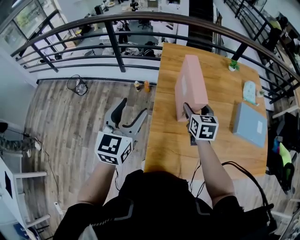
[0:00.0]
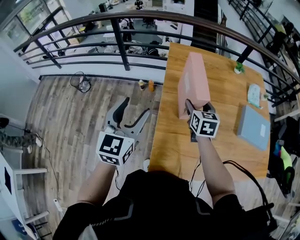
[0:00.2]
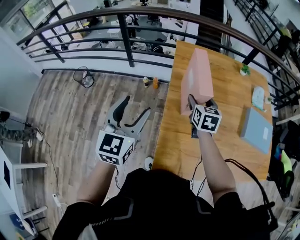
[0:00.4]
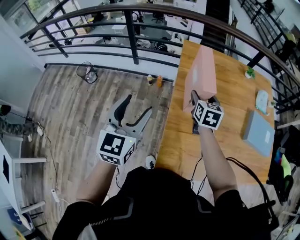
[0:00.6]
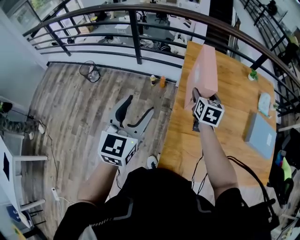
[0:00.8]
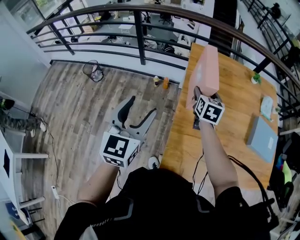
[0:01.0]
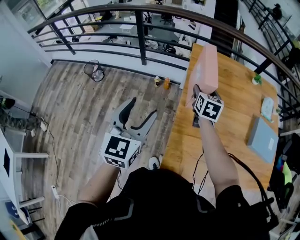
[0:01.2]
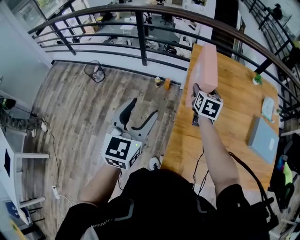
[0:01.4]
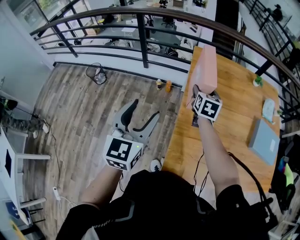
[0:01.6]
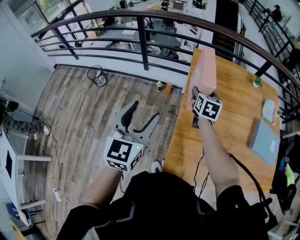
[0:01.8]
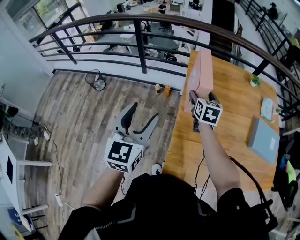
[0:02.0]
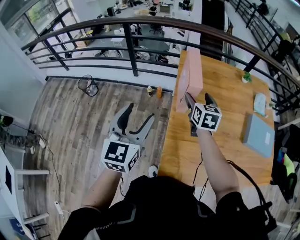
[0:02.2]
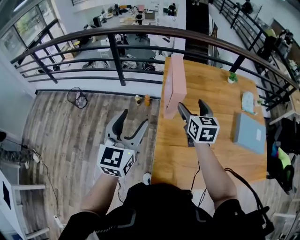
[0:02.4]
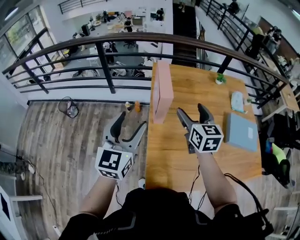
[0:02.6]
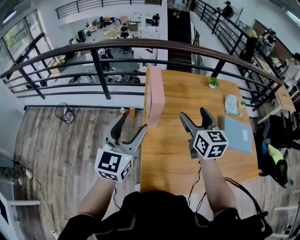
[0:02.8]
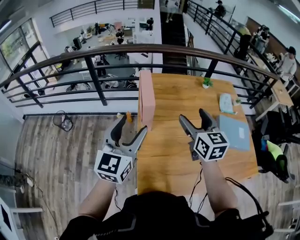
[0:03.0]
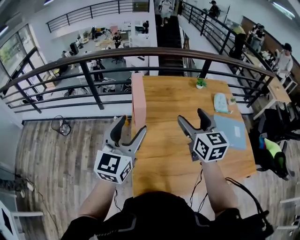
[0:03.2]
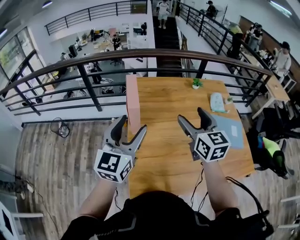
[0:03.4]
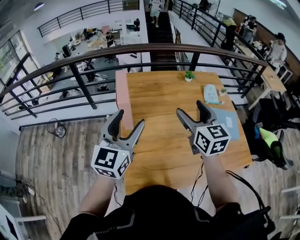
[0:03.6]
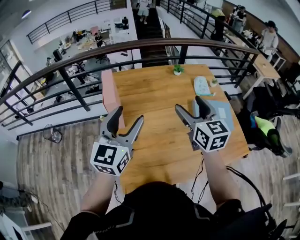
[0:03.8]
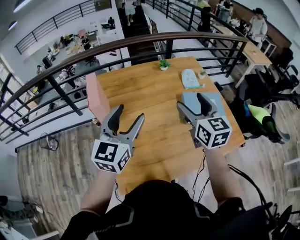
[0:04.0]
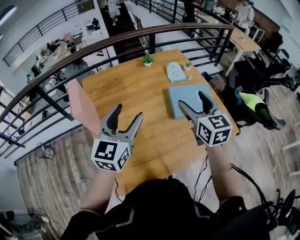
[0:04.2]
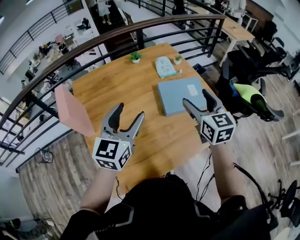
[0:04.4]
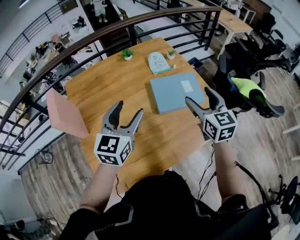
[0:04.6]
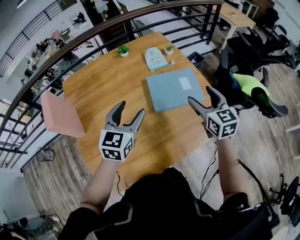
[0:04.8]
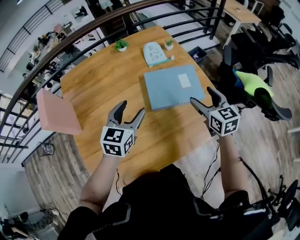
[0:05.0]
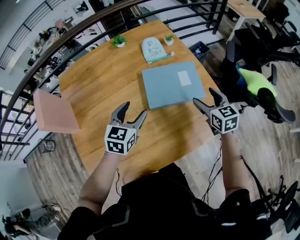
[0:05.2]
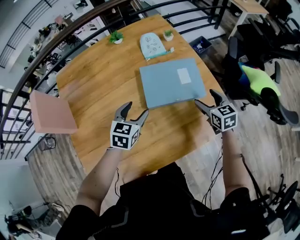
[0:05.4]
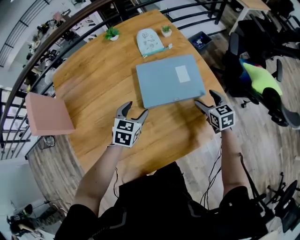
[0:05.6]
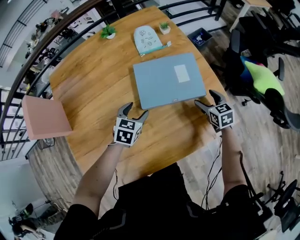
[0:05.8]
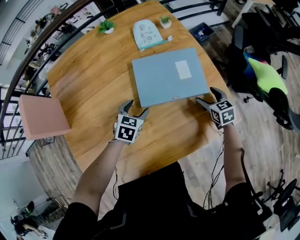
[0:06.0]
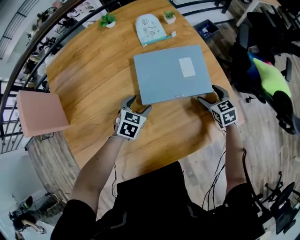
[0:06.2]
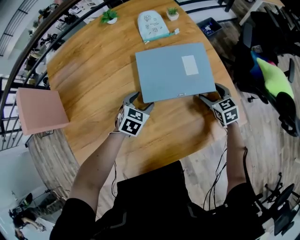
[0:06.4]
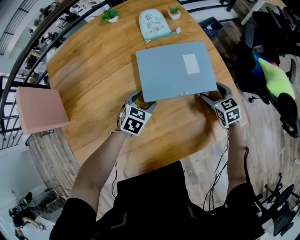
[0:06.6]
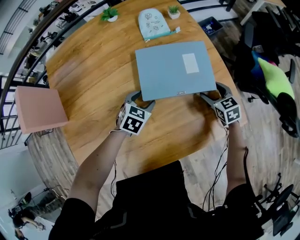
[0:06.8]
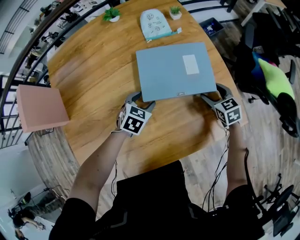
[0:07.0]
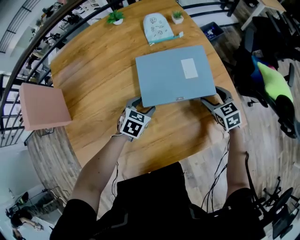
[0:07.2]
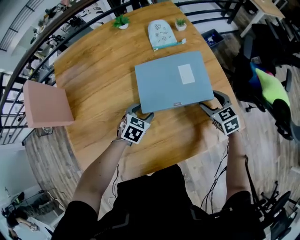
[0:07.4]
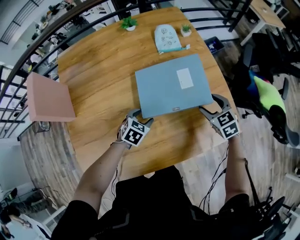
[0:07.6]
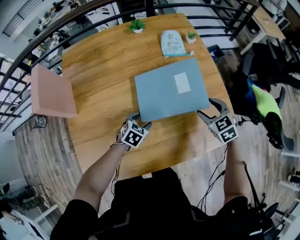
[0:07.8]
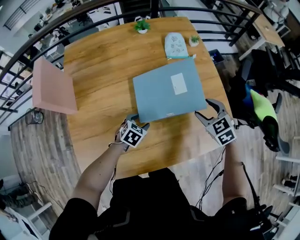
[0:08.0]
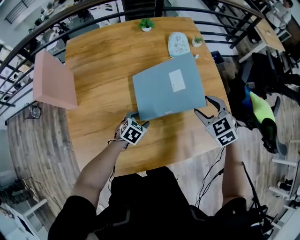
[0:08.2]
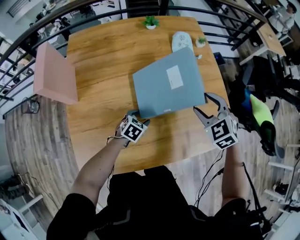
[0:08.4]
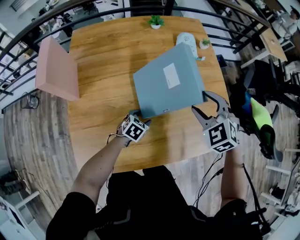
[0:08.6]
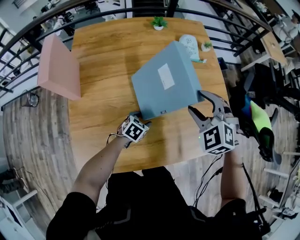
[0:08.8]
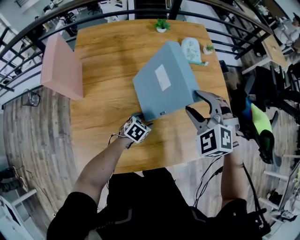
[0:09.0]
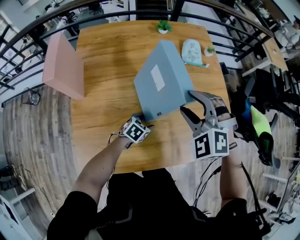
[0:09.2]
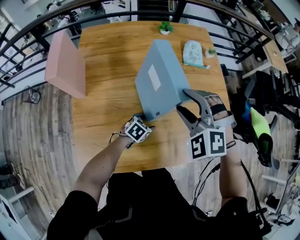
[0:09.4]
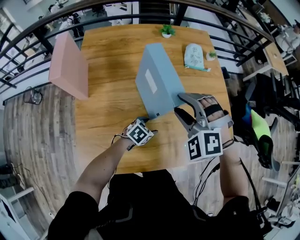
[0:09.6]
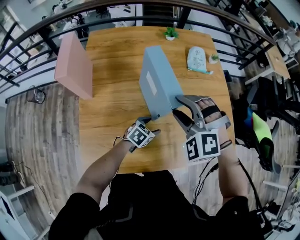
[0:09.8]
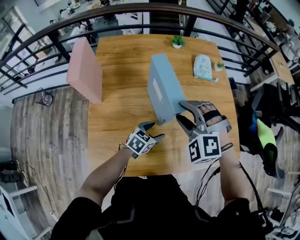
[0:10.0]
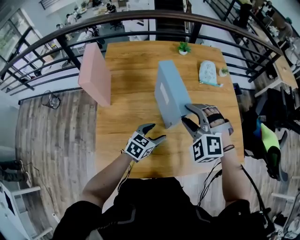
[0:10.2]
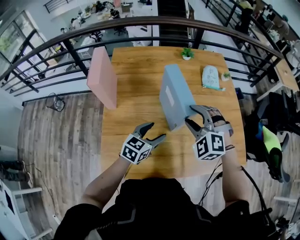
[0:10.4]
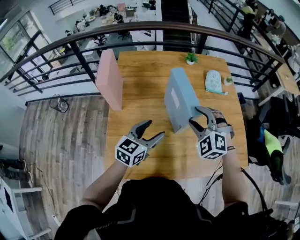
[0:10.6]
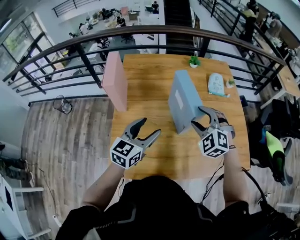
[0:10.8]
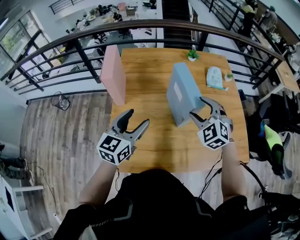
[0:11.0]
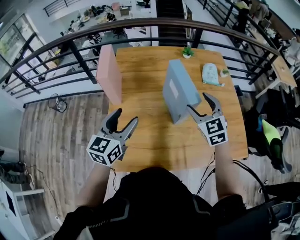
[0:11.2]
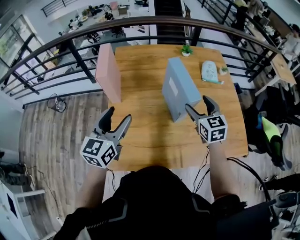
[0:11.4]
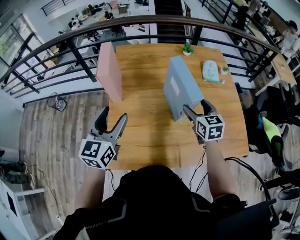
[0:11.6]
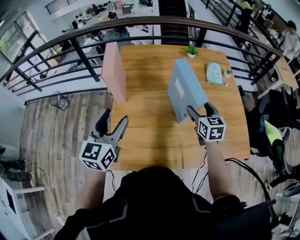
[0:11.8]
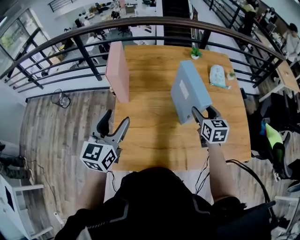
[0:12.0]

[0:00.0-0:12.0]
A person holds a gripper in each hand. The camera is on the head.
0:00.0 to 0:01.6: The right gripper is displaced to the left and forward by about 15 cm. The left gripper moves to the left, about 10 cm.
0:01.6 to 0:03.0: The right gripper goes approximately 25 cm upward, to the right and backward; the left gripper shifts some 15 cm to the right and upward.
0:03.0 to 0:04.4: Both grippers travel together to the right, about 35 cm. The left gripper swivels about 20 degrees. The right gripper changes its angle by approximately 20 degrees.
0:04.4 to 0:06.0: Both grippers move downward and to the right, approximately 40 cm. The right gripper swivels about 30 degrees. Meanwhile the left gripper angles its fingers downward, by about 40 degrees.
0:06.0 to 0:07.6: The right gripper travels upward and to the left by about 10 cm, and rotates about 20 degrees. Meanwhile the left gripper is displaced backward by about 5 cm.
0:07.6 to 0:09.0: The left gripper travels to the left by roughly 5 cm, while the right gripper is displaced to the left and upward by about 25 cm, and rolls counterclockwise, seen from behind, by approximately 50 degrees.
0:09.0 to 0:10.4: The right gripper goes some 10 cm to the left. Meanwhile the left gripper heads upward and to the left, covering roughly 20 cm, and swivels some 30 degrees.
0:10.4 to 0:12.0: The left gripper is displaced to the left and upward by about 25 cm, and swivels about 30 degrees. The right gripper rolls clockwise, seen from behind, by roughly 70 degrees.

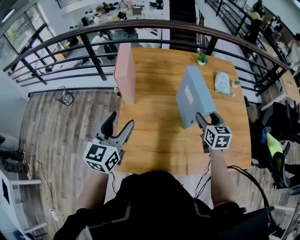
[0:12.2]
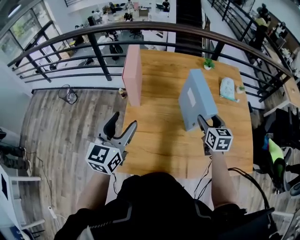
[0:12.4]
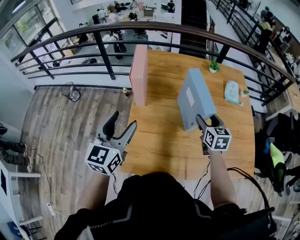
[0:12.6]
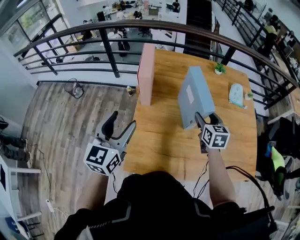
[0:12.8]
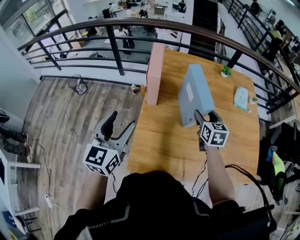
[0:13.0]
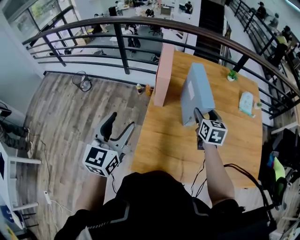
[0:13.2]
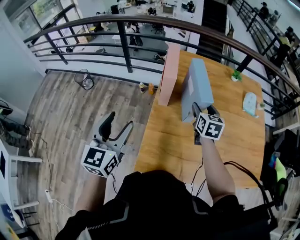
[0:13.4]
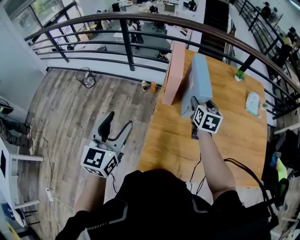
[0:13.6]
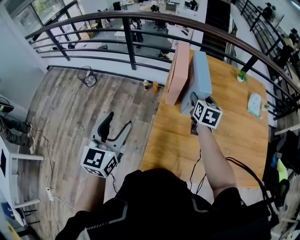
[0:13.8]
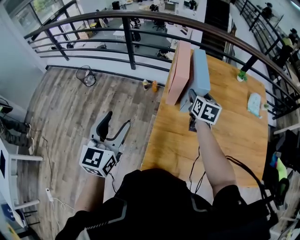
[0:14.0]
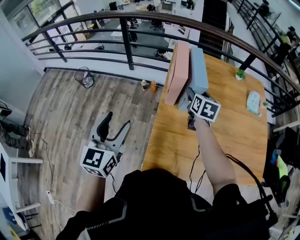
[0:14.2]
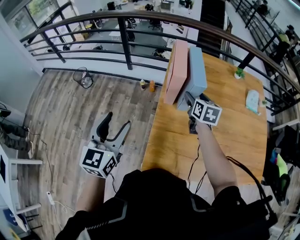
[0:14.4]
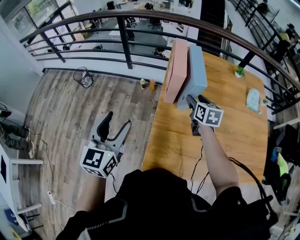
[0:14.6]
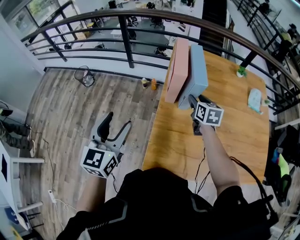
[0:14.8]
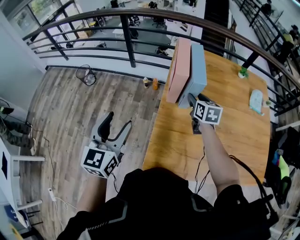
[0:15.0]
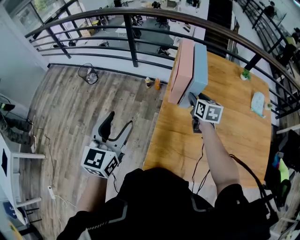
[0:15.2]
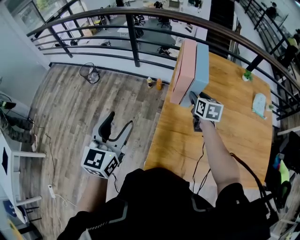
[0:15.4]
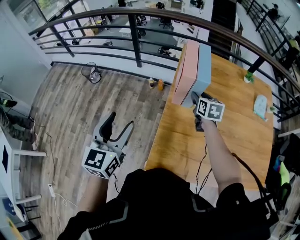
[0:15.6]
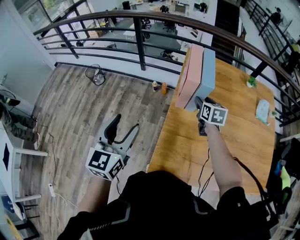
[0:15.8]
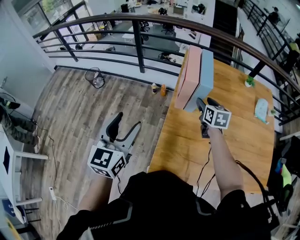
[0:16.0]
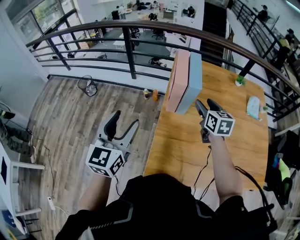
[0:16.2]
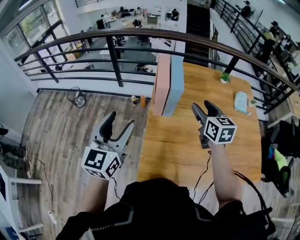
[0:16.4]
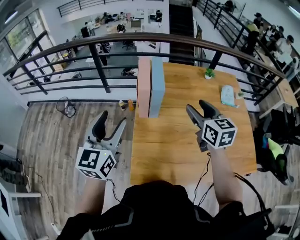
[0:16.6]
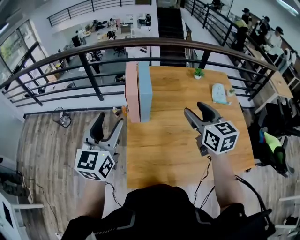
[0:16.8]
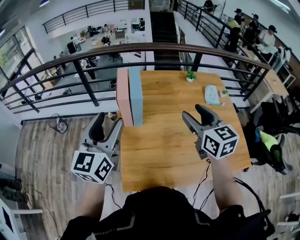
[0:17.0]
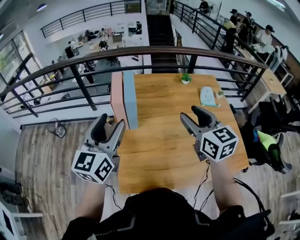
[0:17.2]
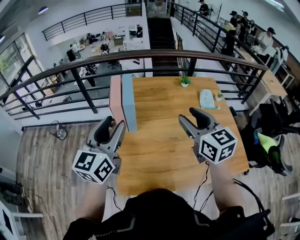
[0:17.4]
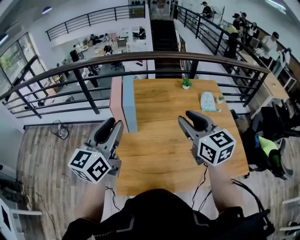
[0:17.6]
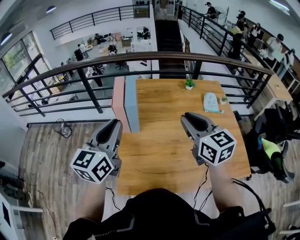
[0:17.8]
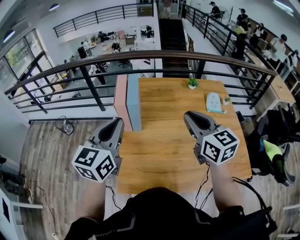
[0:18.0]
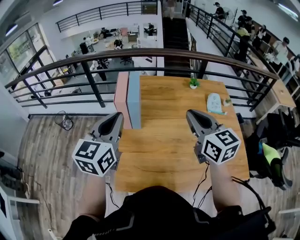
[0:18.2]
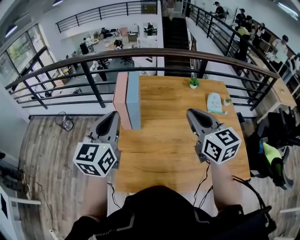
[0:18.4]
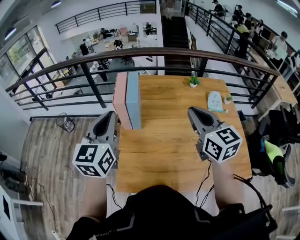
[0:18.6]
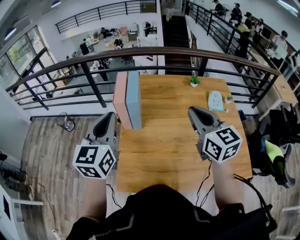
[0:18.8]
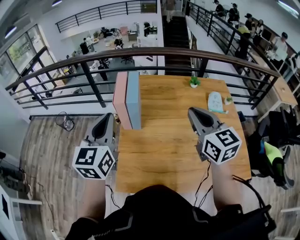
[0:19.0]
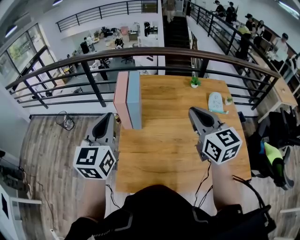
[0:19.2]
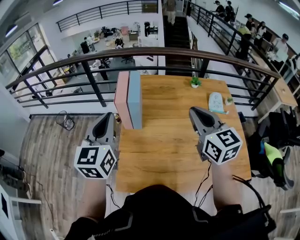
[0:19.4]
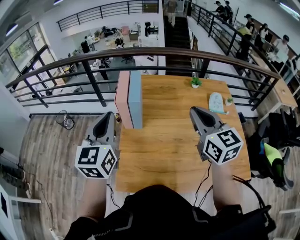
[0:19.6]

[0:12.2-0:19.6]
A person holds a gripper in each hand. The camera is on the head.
0:12.2 to 0:13.6: The right gripper moves to the left and forward, approximately 25 cm. Meanwhile the left gripper heads to the left, covering some 20 cm.
0:13.6 to 0:15.2: The right gripper moves to the left, about 5 cm.
0:15.2 to 0:16.6: The left gripper travels to the right and upward by approximately 10 cm. The right gripper travels upward, backward and to the right by approximately 25 cm.
0:16.6 to 0:18.2: The right gripper is displaced to the right, upward and backward by roughly 15 cm, and closes. The left gripper travels to the right and upward by approximately 15 cm, and closes up.
0:18.2 to 0:19.6: The grippers stay close to where they were, moving slightly.

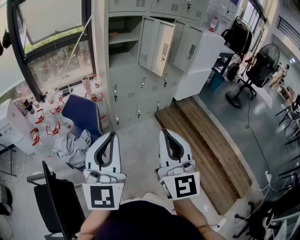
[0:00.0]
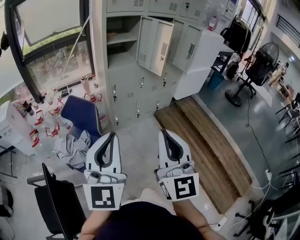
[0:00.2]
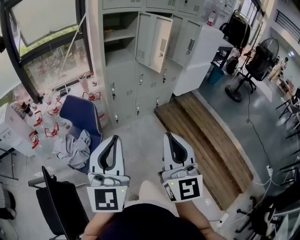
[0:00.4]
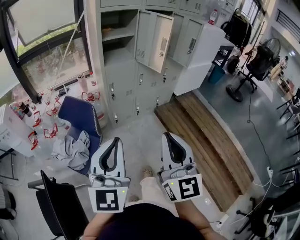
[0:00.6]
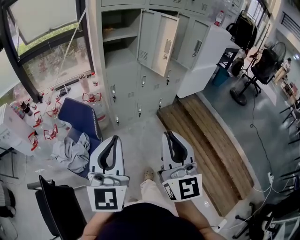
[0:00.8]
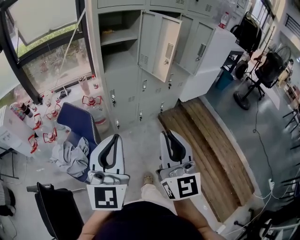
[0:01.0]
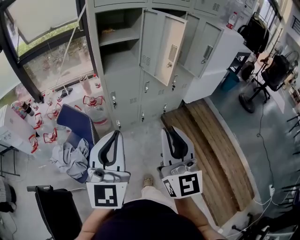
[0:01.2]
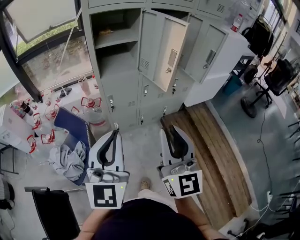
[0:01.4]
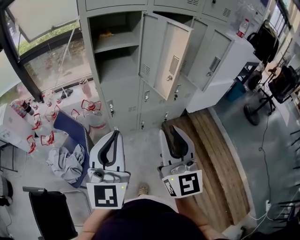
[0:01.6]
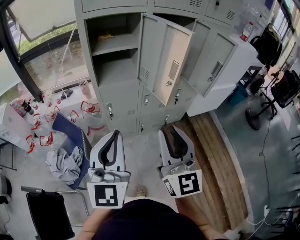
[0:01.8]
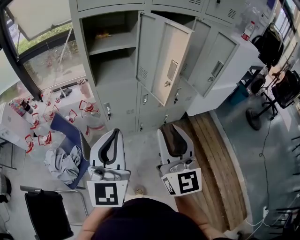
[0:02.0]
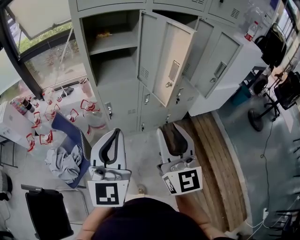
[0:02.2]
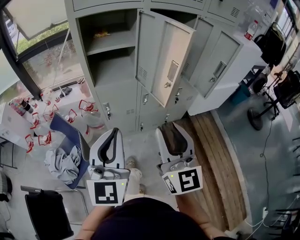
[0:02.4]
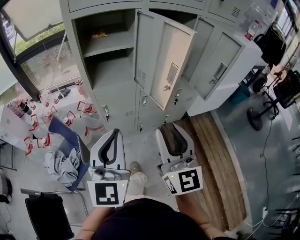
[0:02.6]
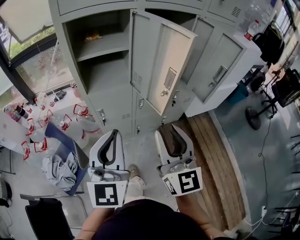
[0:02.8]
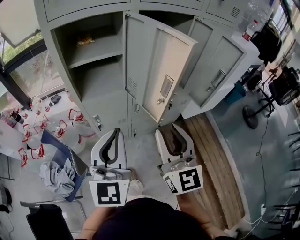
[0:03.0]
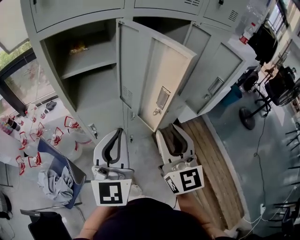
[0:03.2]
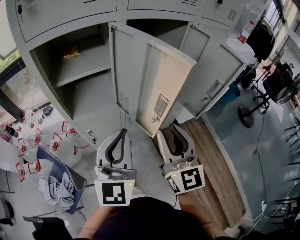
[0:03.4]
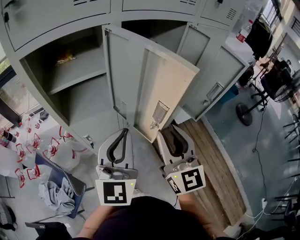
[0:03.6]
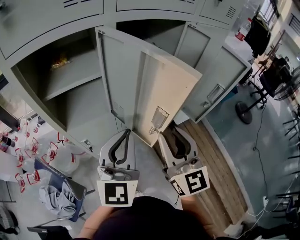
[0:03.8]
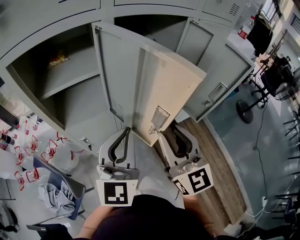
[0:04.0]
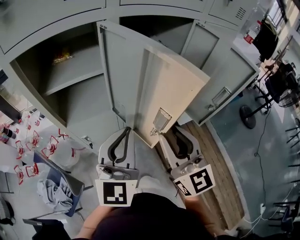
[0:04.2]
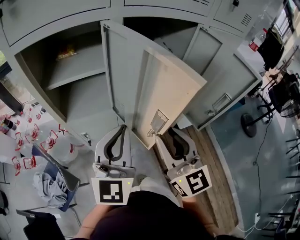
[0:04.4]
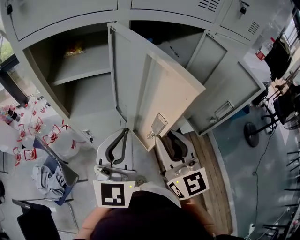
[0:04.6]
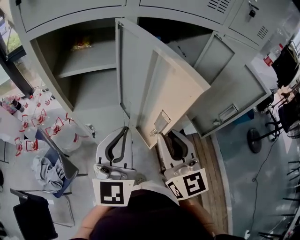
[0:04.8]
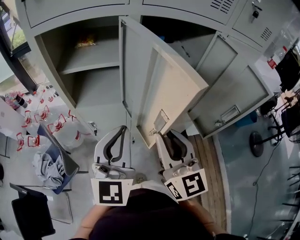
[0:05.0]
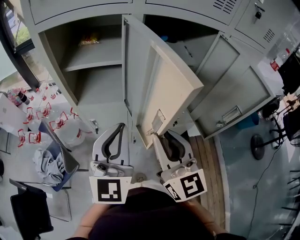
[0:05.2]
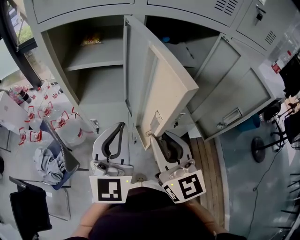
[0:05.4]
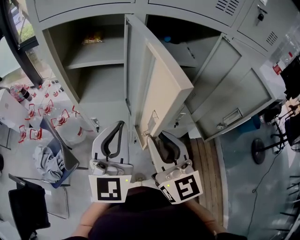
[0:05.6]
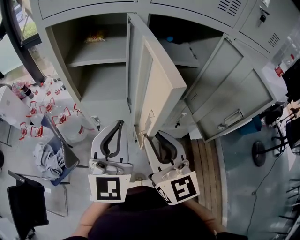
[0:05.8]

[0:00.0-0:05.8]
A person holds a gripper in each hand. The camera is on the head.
0:00.0 to 0:01.4: The two grippers go some 25 cm forward.
0:01.4 to 0:02.8: Both grippers travel together forward and to the right, some 20 cm.
0:02.8 to 0:04.4: The left gripper travels forward and to the right by some 20 cm, while the right gripper shifts about 15 cm forward.
0:04.4 to 0:05.8: The grippers stay close to where they were, moving slightly.
